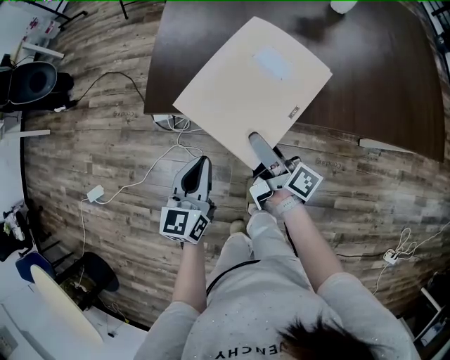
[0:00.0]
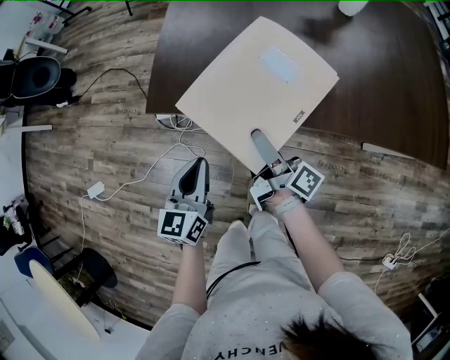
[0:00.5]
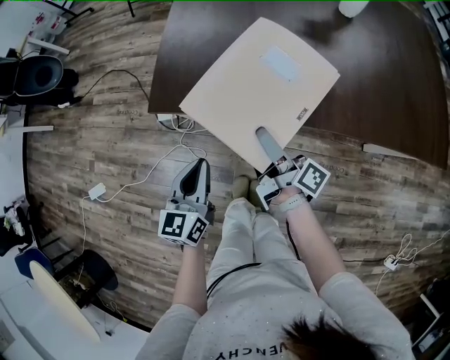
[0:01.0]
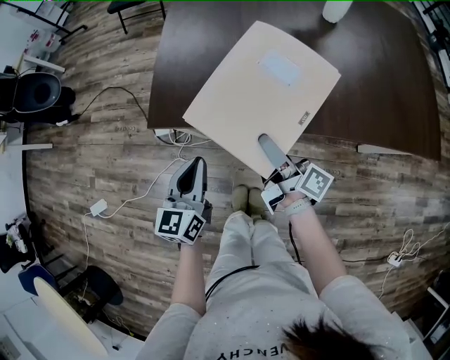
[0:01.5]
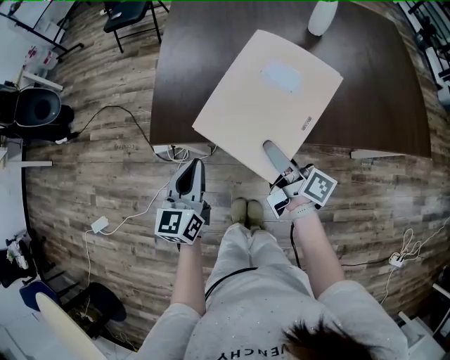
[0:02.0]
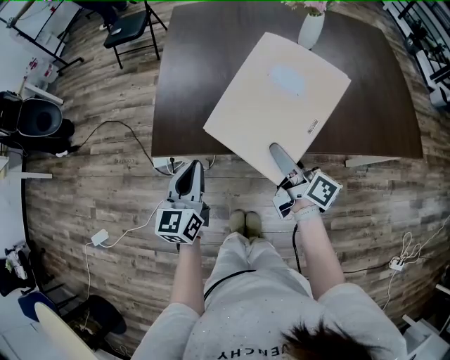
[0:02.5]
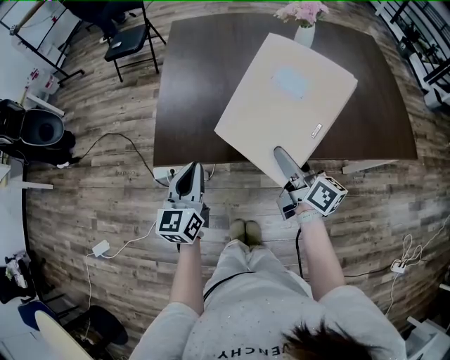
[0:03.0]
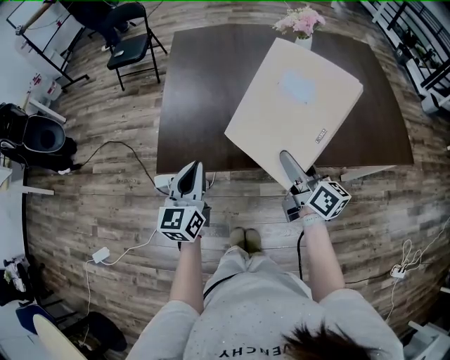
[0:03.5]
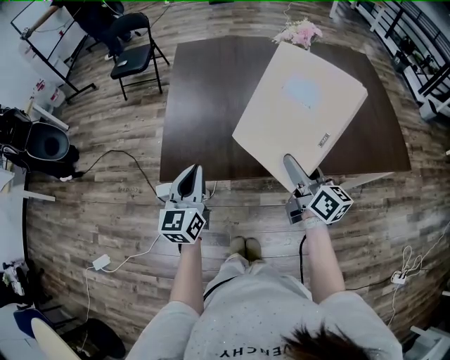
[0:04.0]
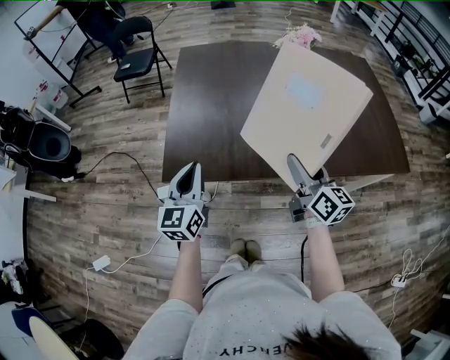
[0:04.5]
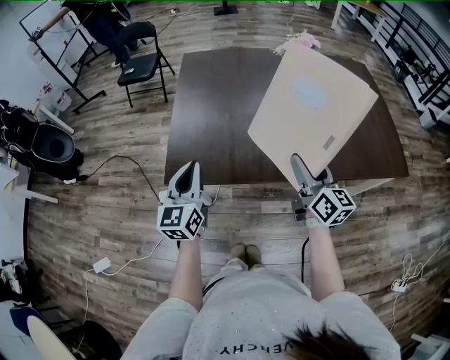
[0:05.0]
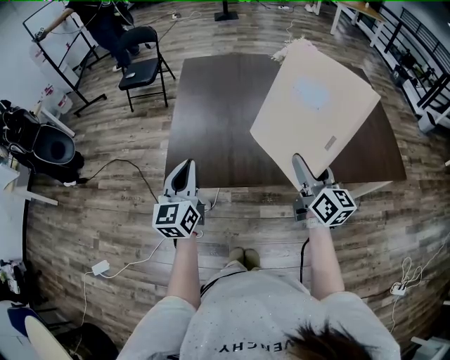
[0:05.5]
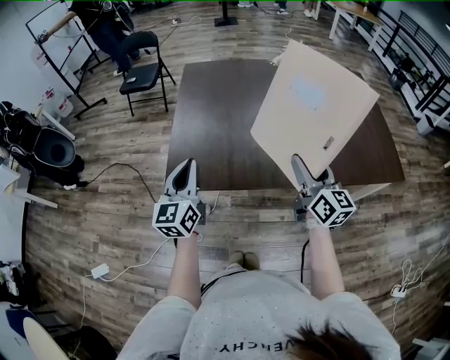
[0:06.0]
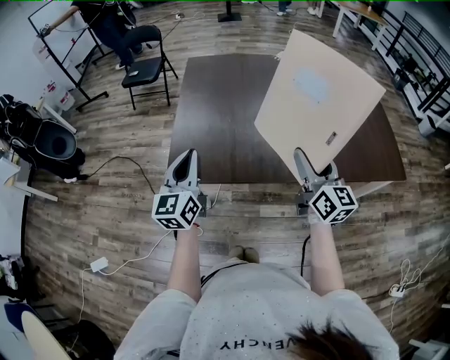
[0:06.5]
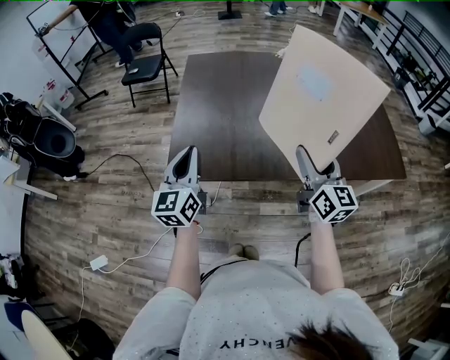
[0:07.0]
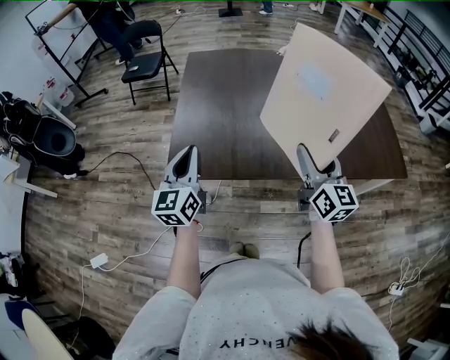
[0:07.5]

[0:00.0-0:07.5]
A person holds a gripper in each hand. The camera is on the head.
0:00.0 to 0:02.0: The right gripper is displaced upward by about 5 cm. The left gripper travels upward and forward by approximately 10 cm.
0:02.0 to 0:04.0: The left gripper shifts some 10 cm upward; the right gripper is displaced upward and to the right by some 15 cm, and rotates roughly 30 degrees.
0:04.0 to 0:05.5: The two grippers go approximately 5 cm upward.
0:05.5 to 0:07.5: The grippers move only a little.

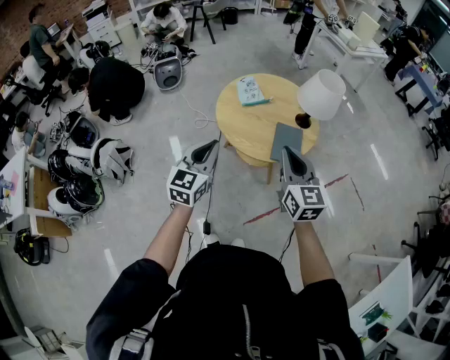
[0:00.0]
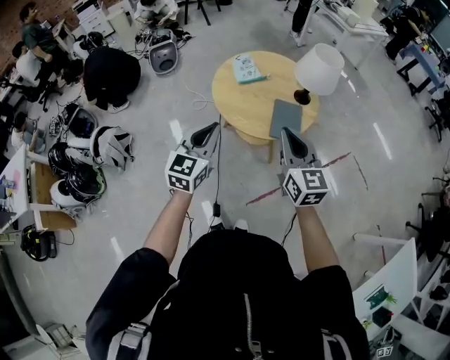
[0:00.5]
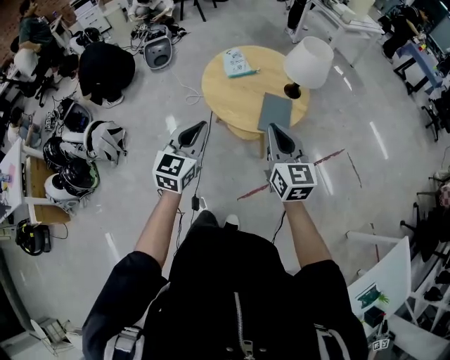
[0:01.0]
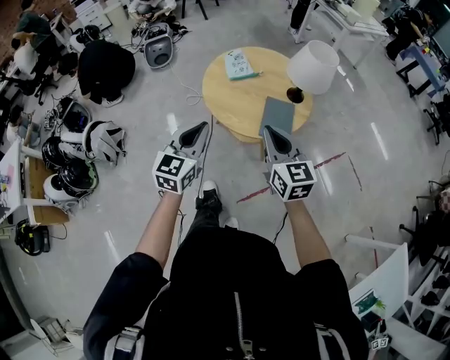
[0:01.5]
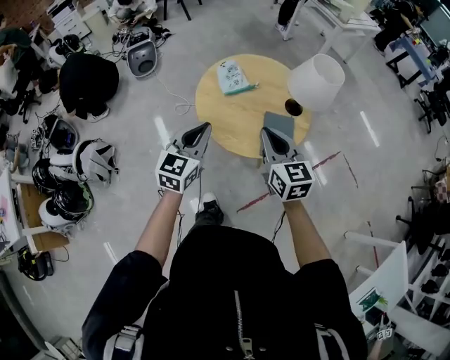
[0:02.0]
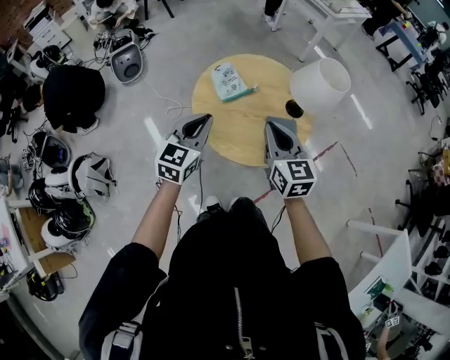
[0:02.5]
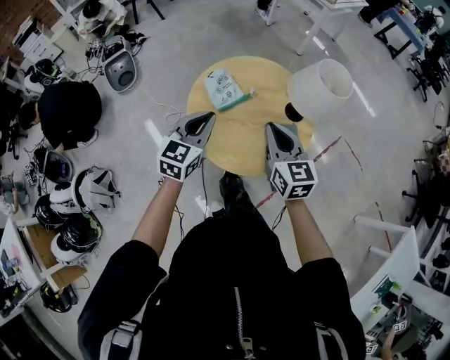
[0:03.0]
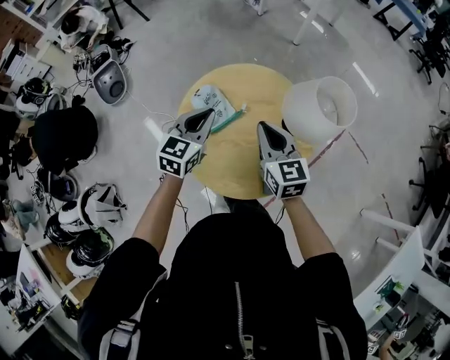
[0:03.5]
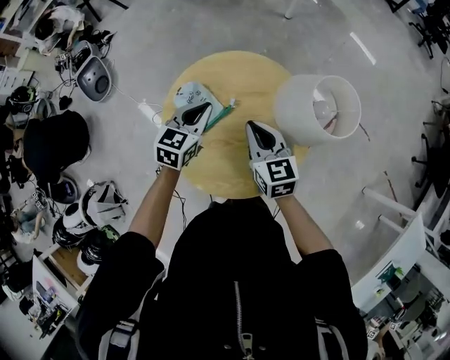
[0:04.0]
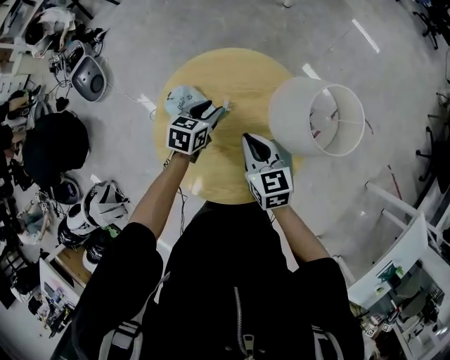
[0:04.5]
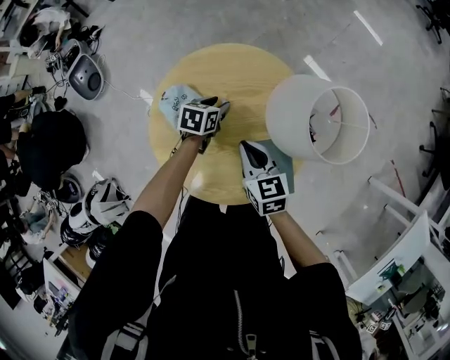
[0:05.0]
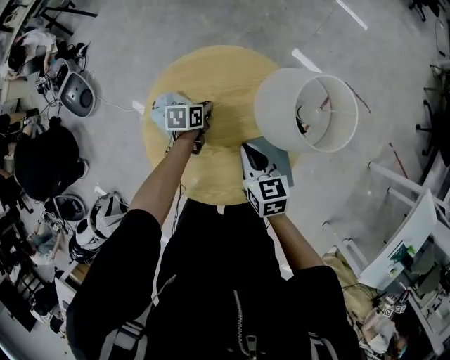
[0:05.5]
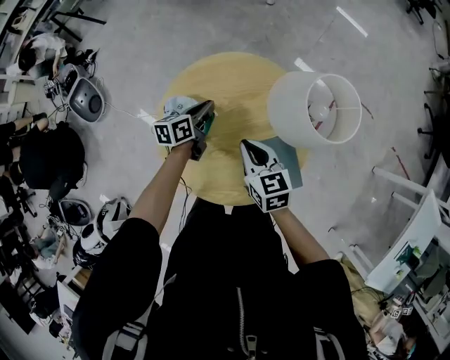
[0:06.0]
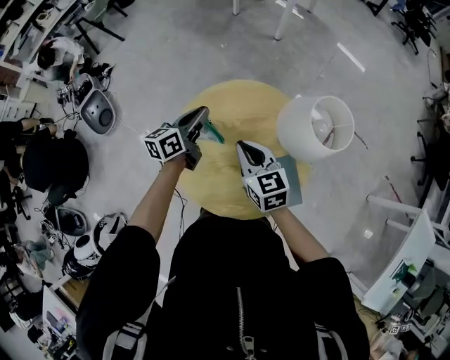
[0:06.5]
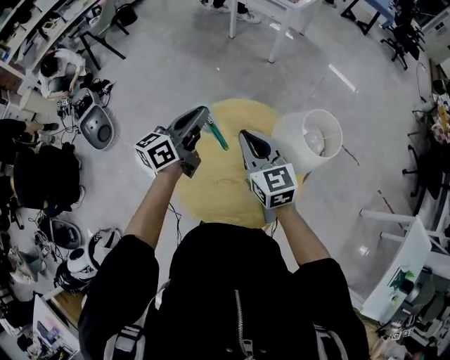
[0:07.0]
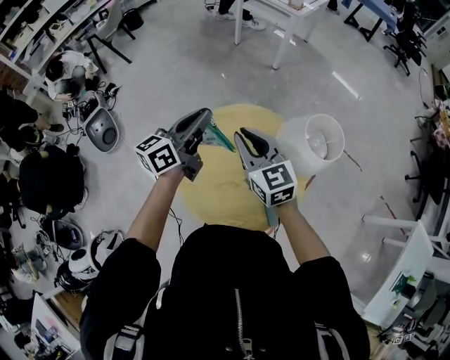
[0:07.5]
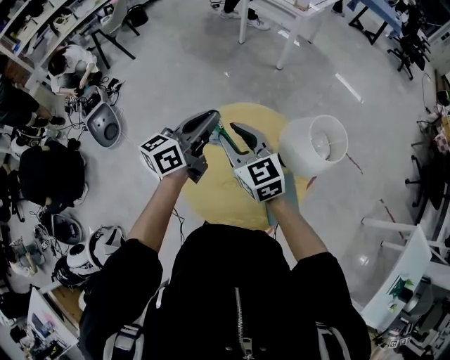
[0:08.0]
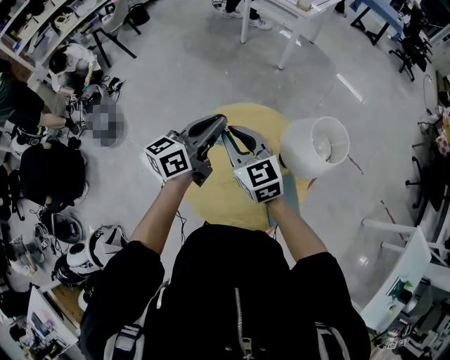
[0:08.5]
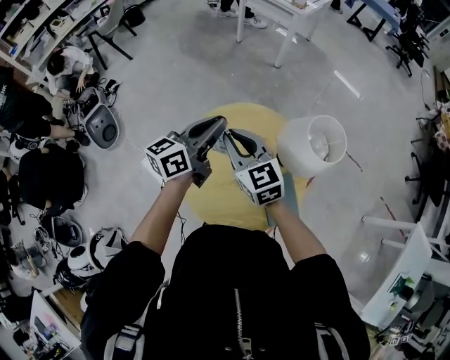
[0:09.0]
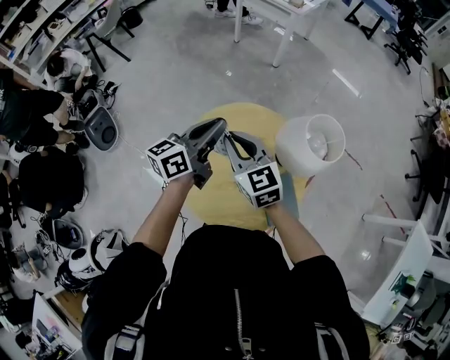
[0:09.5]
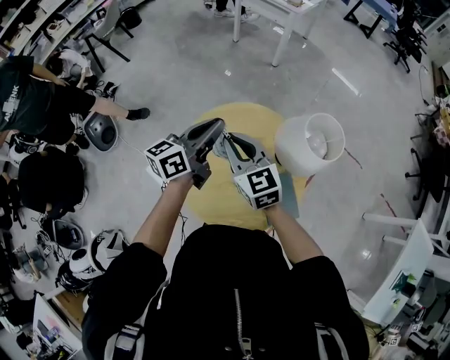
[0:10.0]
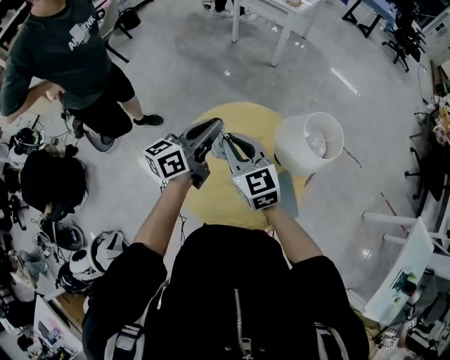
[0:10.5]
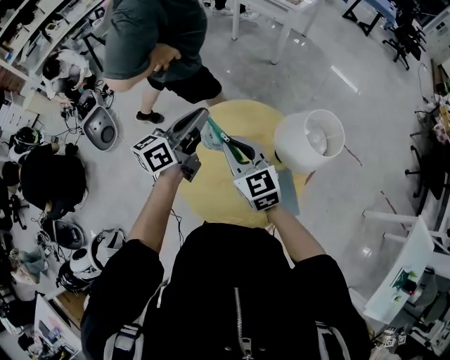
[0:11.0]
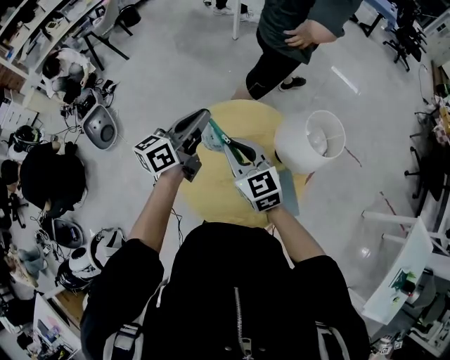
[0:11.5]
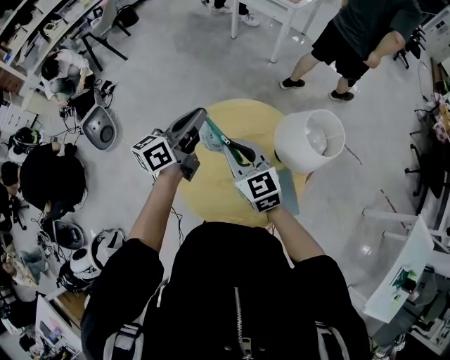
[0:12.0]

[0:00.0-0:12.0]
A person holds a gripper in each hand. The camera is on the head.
0:00.0 to 0:02.0: Both grippers move forward, some 15 cm.
0:02.0 to 0:04.0: The right gripper is displaced forward and downward by some 35 cm, while the left gripper moves forward, some 40 cm, and swivels some 30 degrees.
0:04.0 to 0:06.0: The right gripper heads downward, covering roughly 5 cm, while the left gripper goes about 10 cm downward and forward, swivels some 40 degrees, and opens and closes again.
0:06.0 to 0:08.0: The left gripper shifts roughly 30 cm upward, and angles its fingers upward, by approximately 30 degrees. The right gripper heads upward and to the left, covering some 20 cm, swivels some 30 degrees, and opens its fingers.
0:08.0 to 0:12.0: The grippers stay close to where they were, moving slightly.

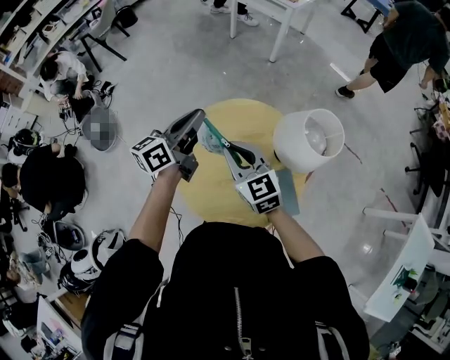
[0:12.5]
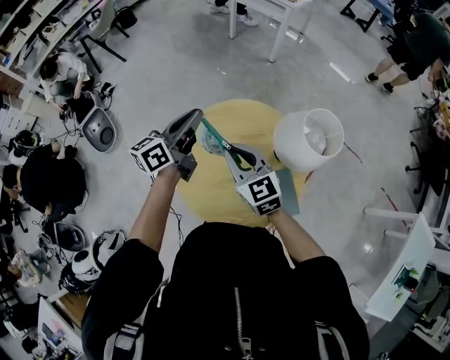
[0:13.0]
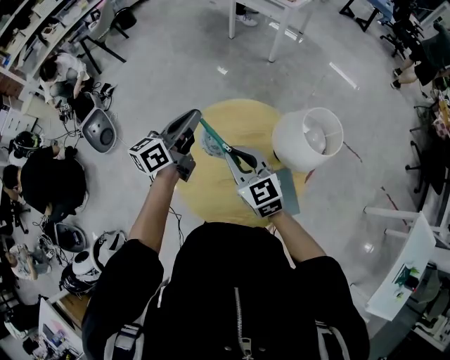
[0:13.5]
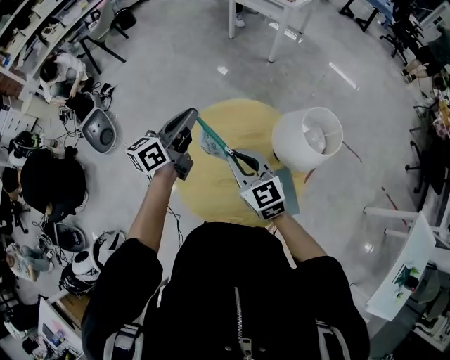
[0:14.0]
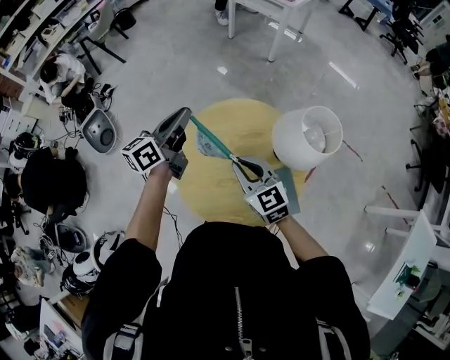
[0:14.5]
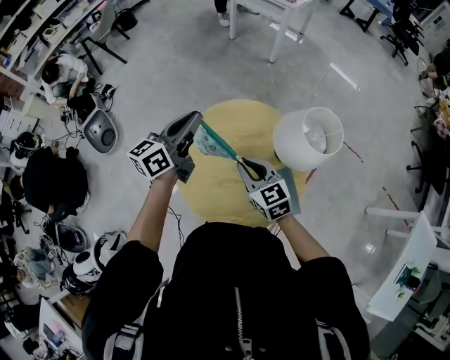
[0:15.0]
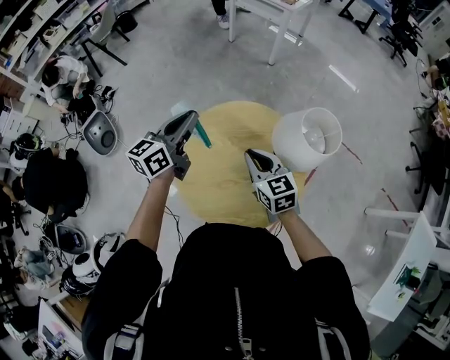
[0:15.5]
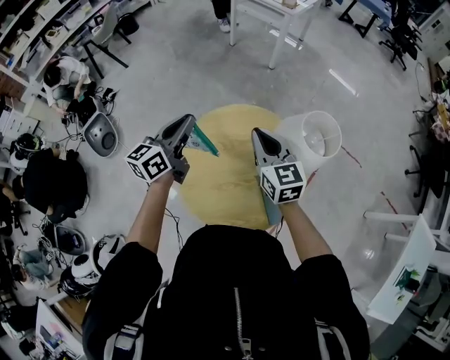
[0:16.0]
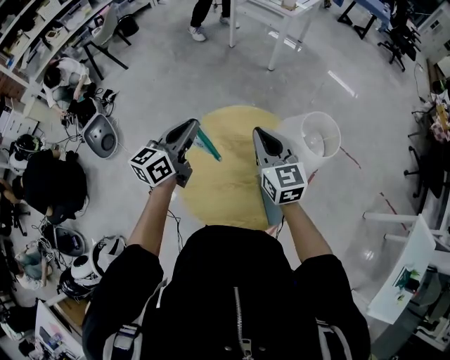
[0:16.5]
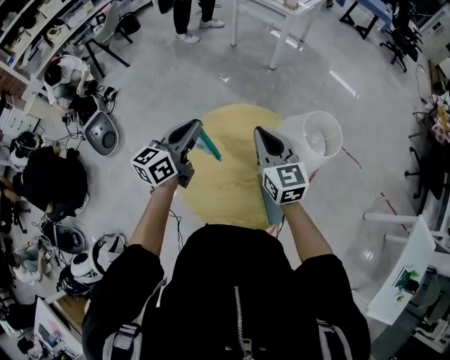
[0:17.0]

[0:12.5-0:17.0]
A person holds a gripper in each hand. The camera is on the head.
0:12.5 to 0:14.5: The right gripper shifts by about 5 cm.
0:14.5 to 0:17.0: The right gripper goes about 10 cm forward and upward.

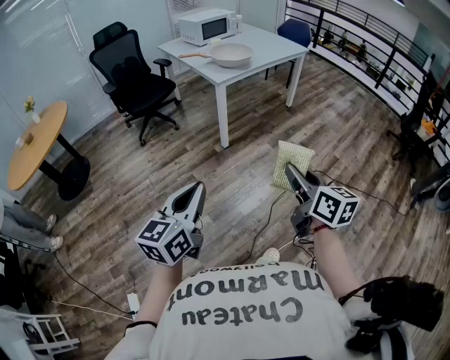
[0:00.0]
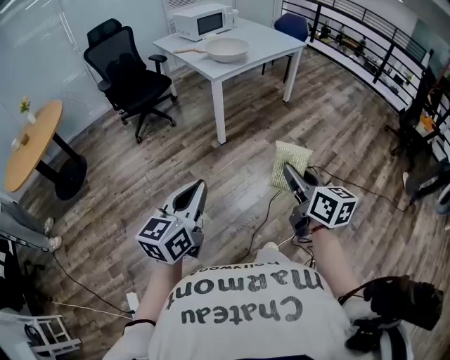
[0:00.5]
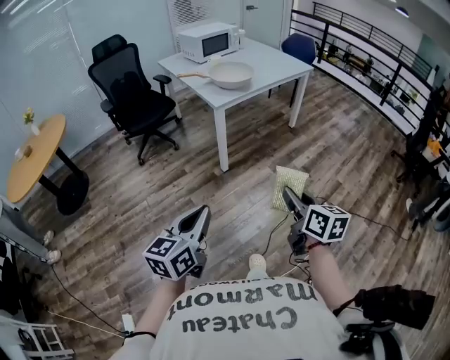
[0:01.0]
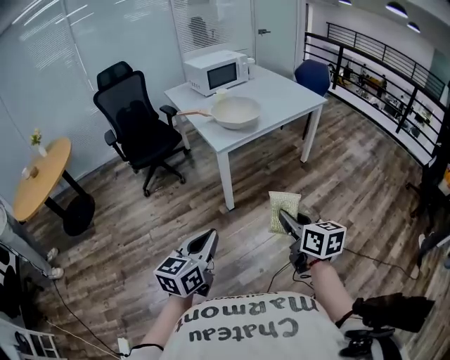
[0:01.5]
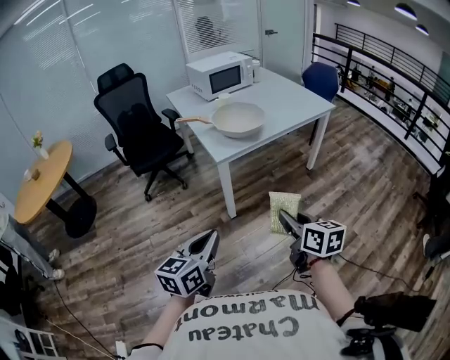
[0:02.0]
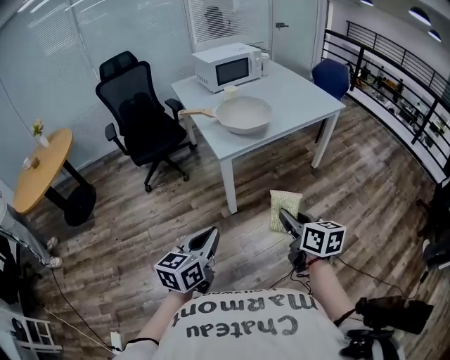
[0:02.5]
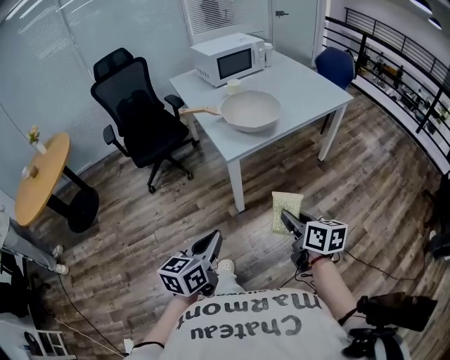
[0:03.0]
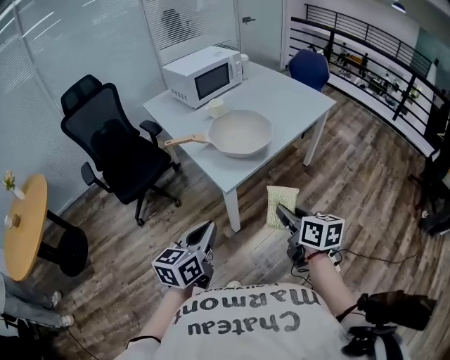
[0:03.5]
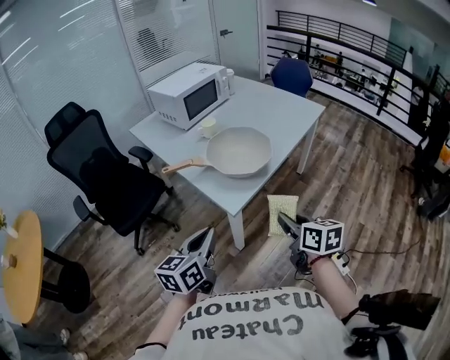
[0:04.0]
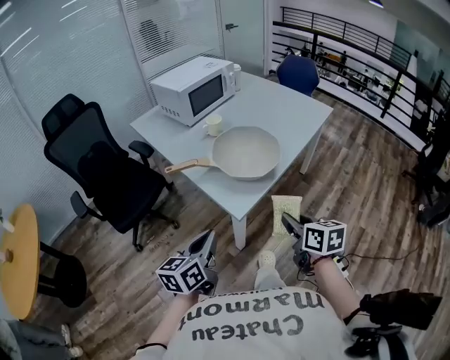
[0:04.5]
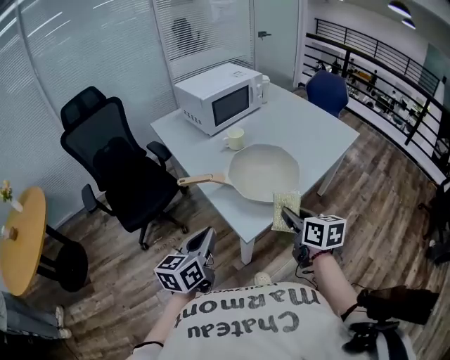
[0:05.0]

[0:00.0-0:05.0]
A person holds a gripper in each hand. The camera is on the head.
0:00.0 to 0:02.5: Both grippers travel together forward, roughly 40 cm.
0:02.5 to 0:05.0: The two grippers go roughly 40 cm forward and to the left.
